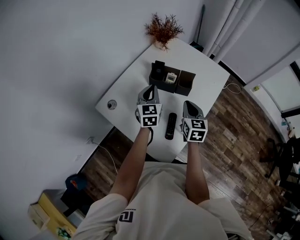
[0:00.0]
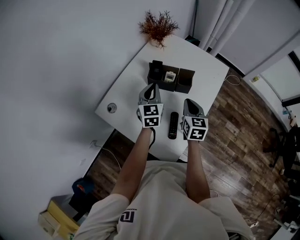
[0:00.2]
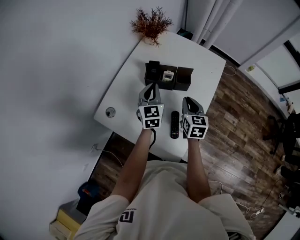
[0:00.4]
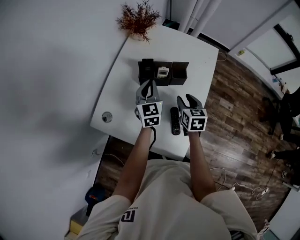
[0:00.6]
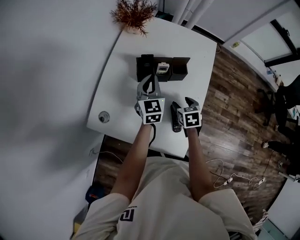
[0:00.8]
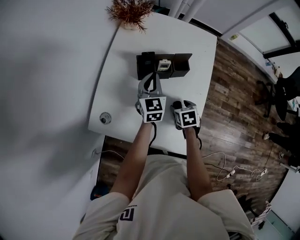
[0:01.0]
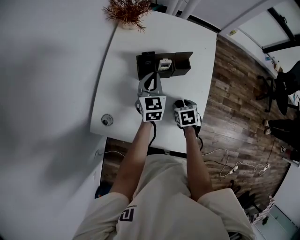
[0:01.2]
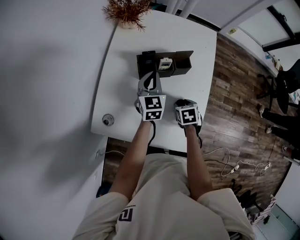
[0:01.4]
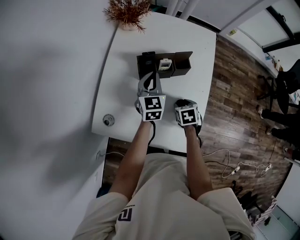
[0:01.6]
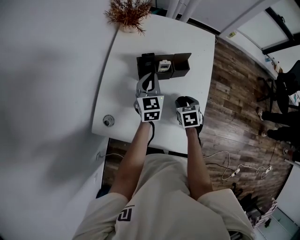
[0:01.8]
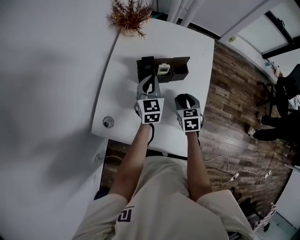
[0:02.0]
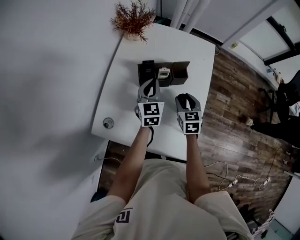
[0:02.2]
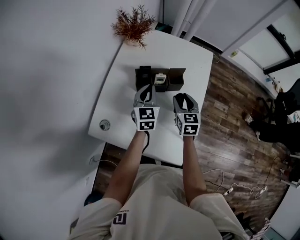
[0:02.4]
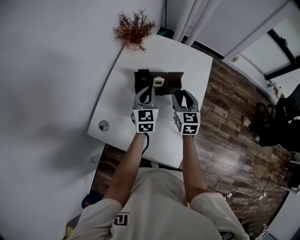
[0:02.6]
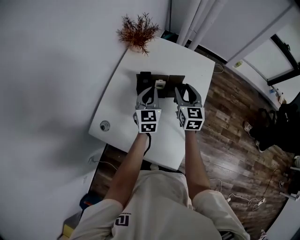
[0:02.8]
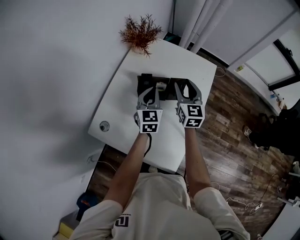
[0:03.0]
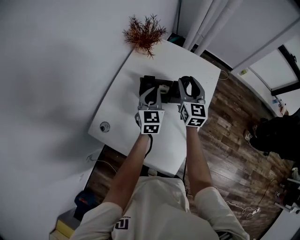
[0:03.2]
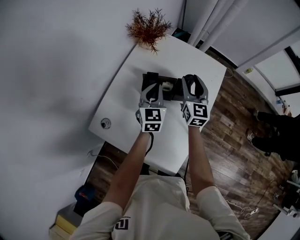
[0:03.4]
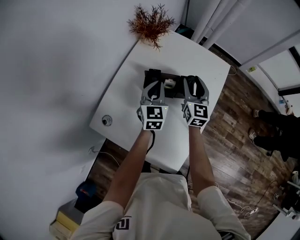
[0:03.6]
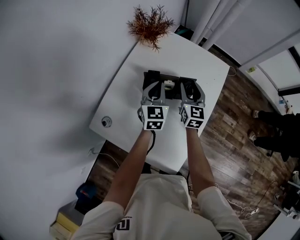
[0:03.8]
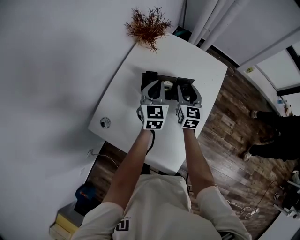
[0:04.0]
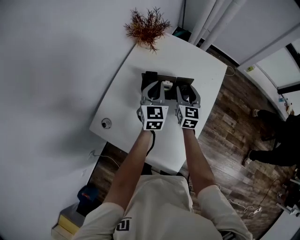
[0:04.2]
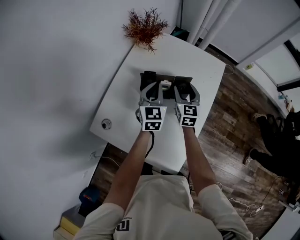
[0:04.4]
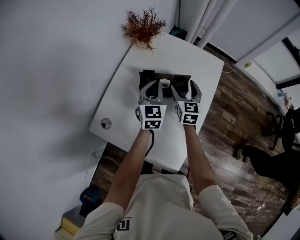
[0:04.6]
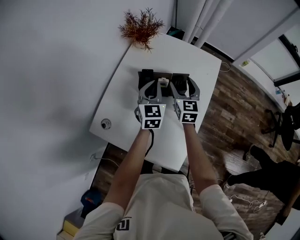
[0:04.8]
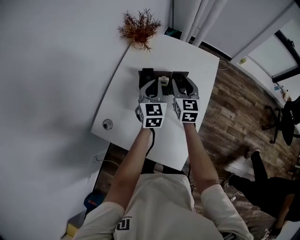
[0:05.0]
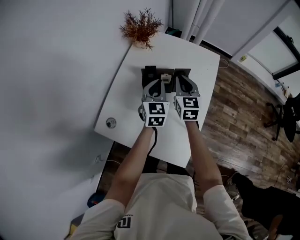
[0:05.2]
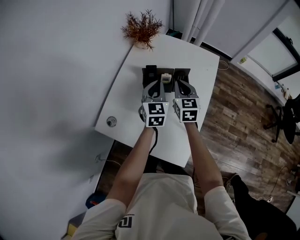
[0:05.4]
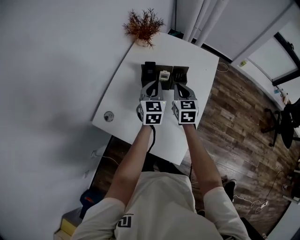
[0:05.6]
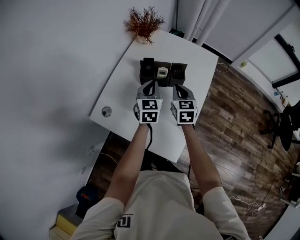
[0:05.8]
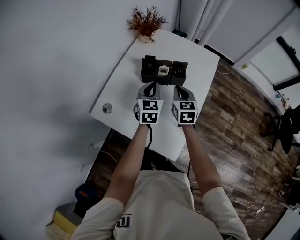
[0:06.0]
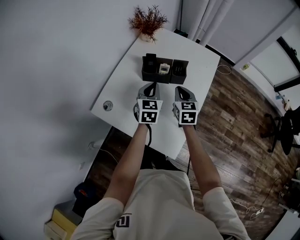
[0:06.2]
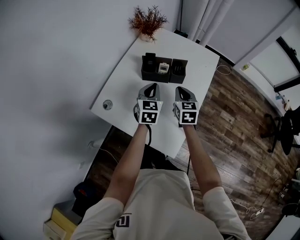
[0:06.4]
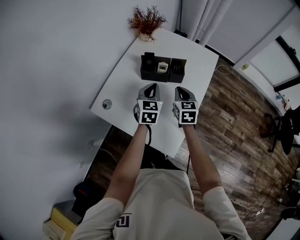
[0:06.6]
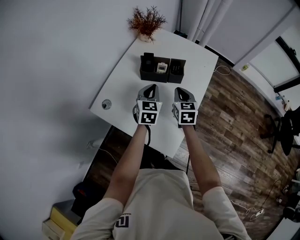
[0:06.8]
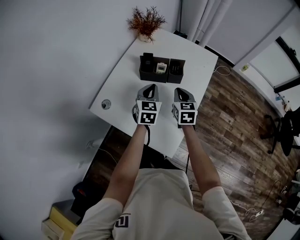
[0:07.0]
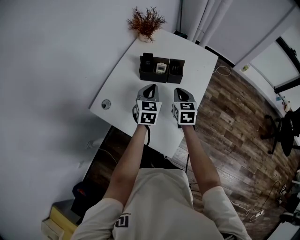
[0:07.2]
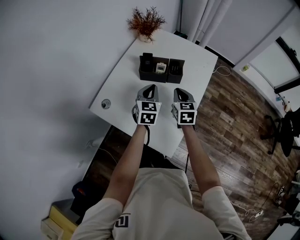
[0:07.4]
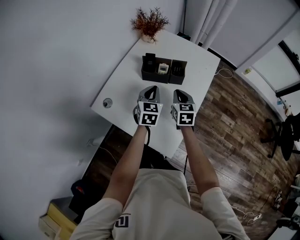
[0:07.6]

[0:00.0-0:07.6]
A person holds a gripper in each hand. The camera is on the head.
0.0 to 1.6 s: The left gripper goes some 10 cm forward and downward, and turns by approximately 30 degrees. The right gripper is displaced downward by approximately 15 cm, angles its fingers downward, by roughly 40 degrees, and opens up.
1.6 to 3.0 s: The left gripper goes approximately 5 cm upward. Meanwhile the right gripper goes some 30 cm upward and forward, and tilts its fingers approximately 60 degrees upward.
3.0 to 4.6 s: The right gripper travels downward by roughly 10 cm, and opens.
4.6 to 6.0 s: Both grippers move backward, approximately 10 cm. The right gripper closes up.
6.0 to 7.6 s: The grippers stay close to where they were, moving slightly.

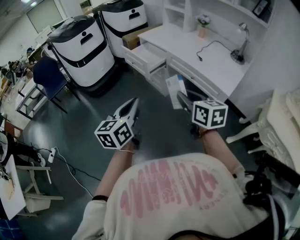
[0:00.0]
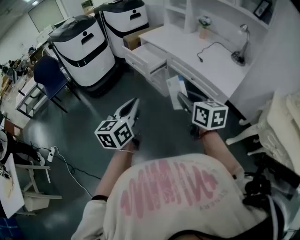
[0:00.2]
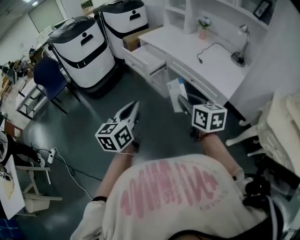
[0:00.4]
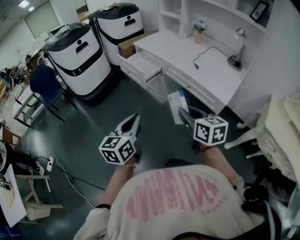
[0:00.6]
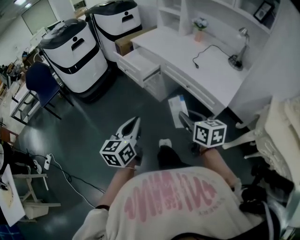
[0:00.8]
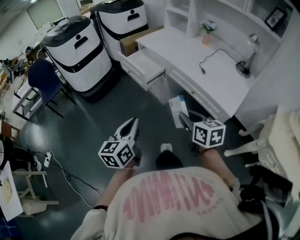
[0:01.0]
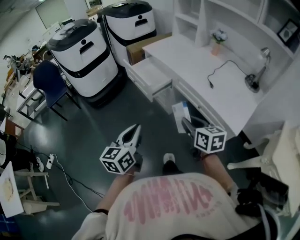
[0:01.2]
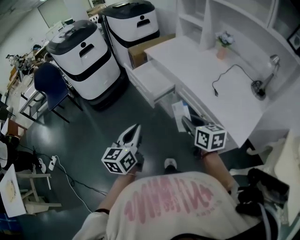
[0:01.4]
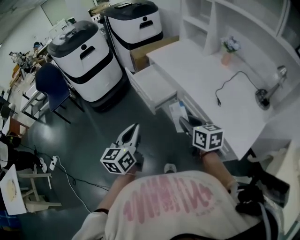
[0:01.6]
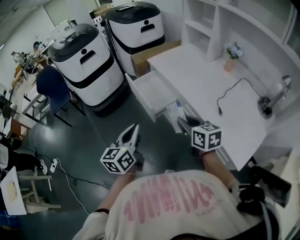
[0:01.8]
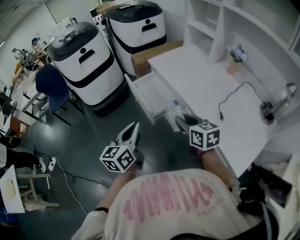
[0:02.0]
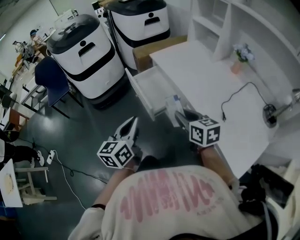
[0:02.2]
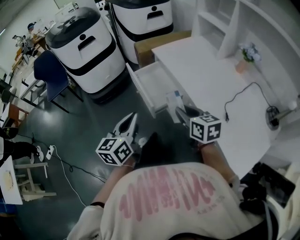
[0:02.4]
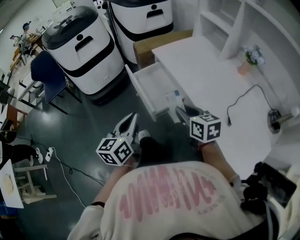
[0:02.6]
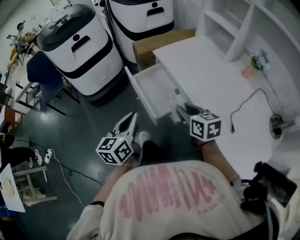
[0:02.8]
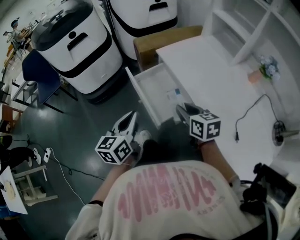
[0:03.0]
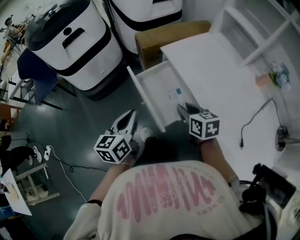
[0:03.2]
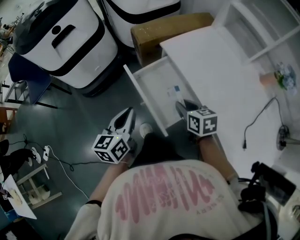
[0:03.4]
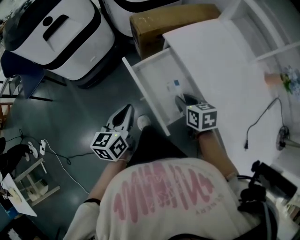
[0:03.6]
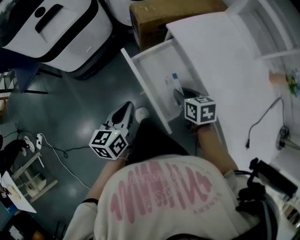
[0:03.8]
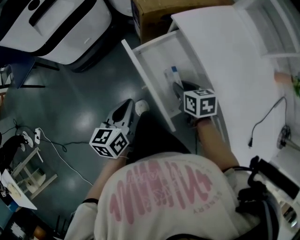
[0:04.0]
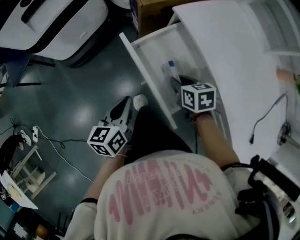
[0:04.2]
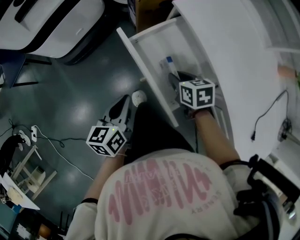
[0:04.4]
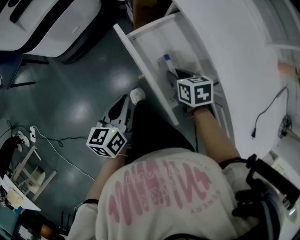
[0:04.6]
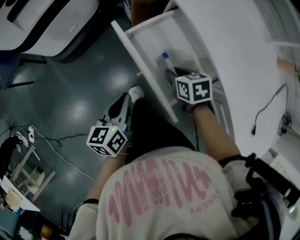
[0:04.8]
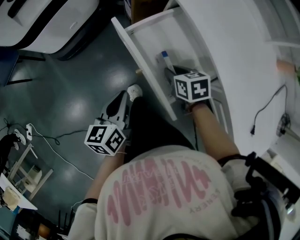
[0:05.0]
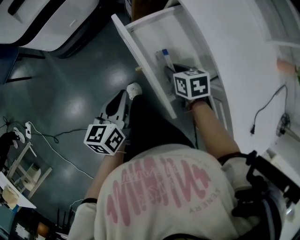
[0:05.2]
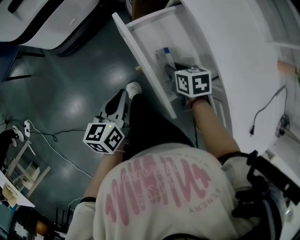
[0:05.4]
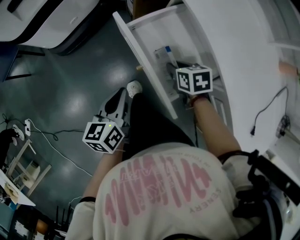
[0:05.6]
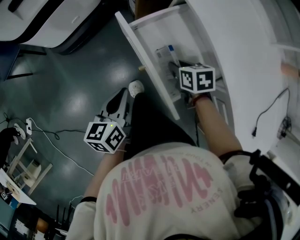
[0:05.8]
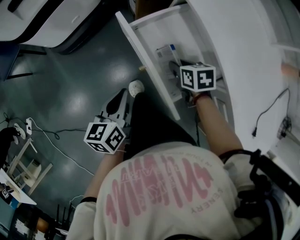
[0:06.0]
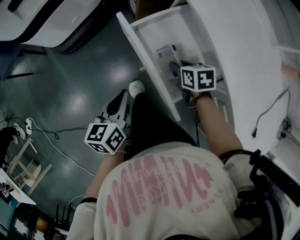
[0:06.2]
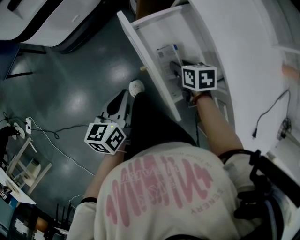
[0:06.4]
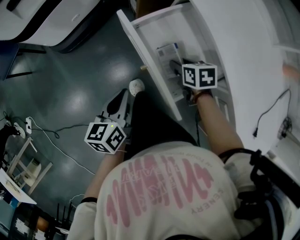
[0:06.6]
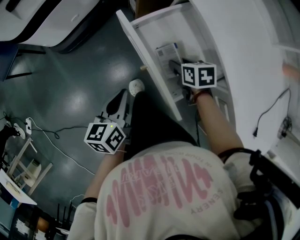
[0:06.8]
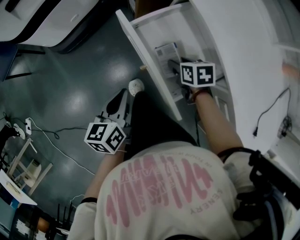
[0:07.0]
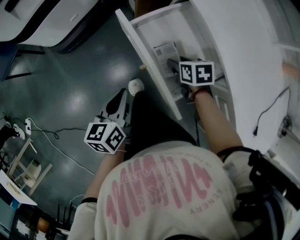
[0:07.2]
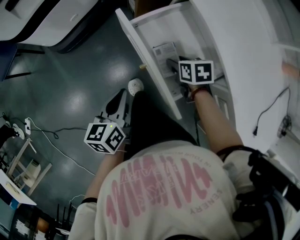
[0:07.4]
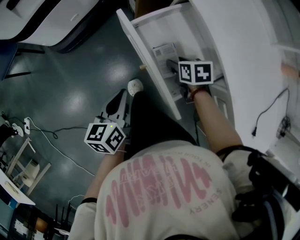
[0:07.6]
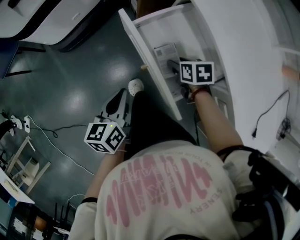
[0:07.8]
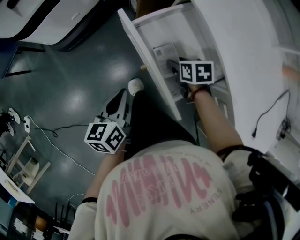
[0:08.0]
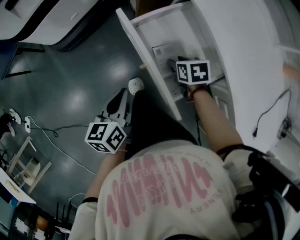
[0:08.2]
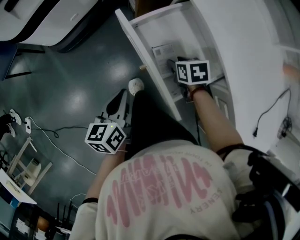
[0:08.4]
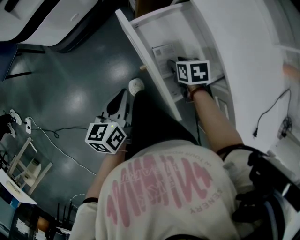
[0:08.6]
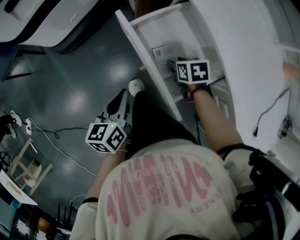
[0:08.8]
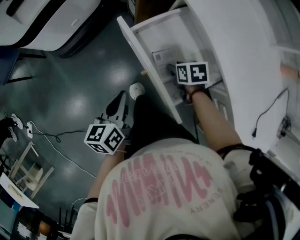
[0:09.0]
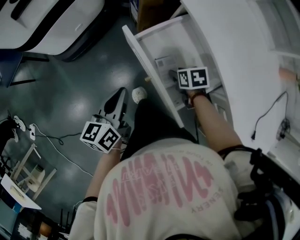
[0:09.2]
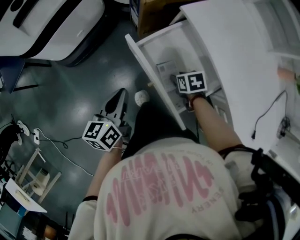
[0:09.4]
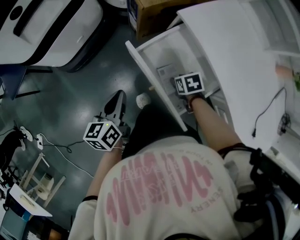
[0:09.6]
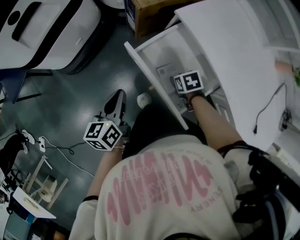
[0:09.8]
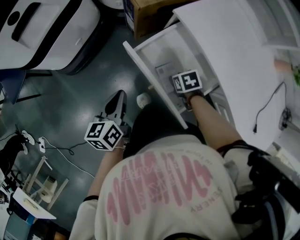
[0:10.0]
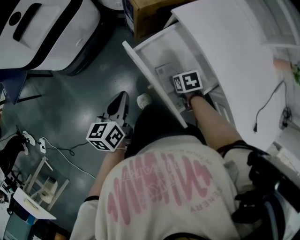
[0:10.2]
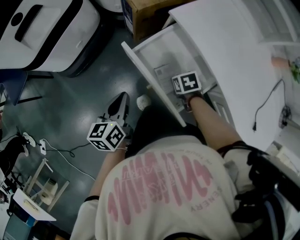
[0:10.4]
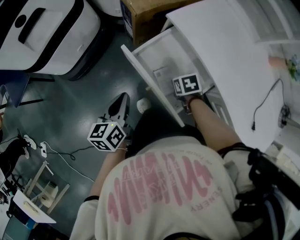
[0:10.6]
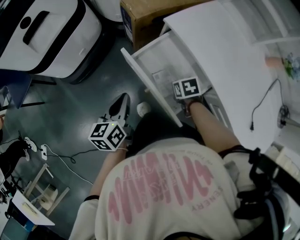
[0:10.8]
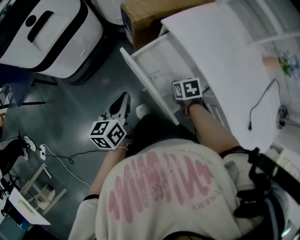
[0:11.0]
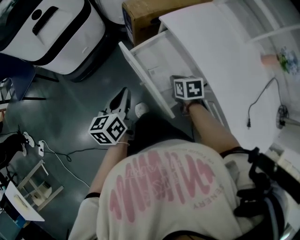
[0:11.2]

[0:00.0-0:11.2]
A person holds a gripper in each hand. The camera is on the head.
0.0 to 1.6 s: The grippers both shift forward by some 25 cm.
1.6 to 3.2 s: Both grippers travel together forward, about 30 cm.
3.2 to 4.8 s: The two grippers go approximately 15 cm downward.
4.8 to 8.0 s: The grippers make only small movements.
8.0 to 9.6 s: The left gripper moves some 10 cm.
9.6 to 11.2 s: The right gripper heads upward, covering approximately 10 cm, turns by some 20 degrees, and closes up; the left gripper shifts by about 10 cm.

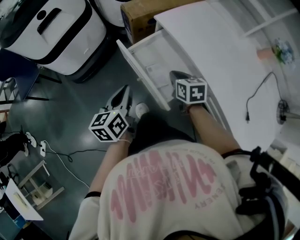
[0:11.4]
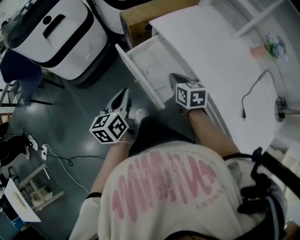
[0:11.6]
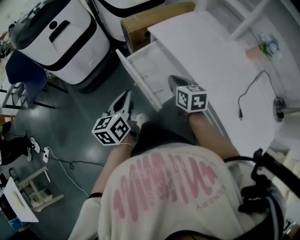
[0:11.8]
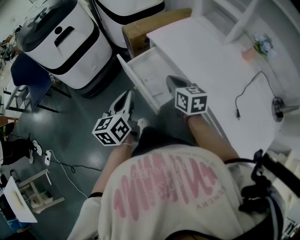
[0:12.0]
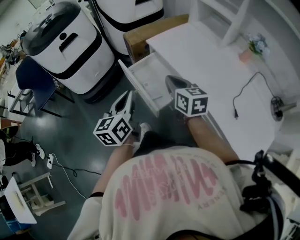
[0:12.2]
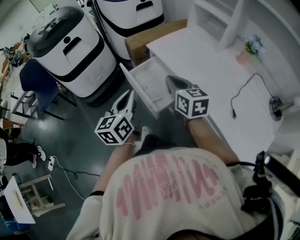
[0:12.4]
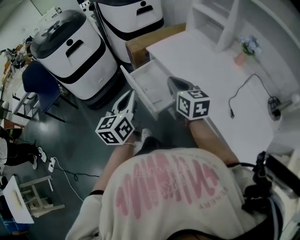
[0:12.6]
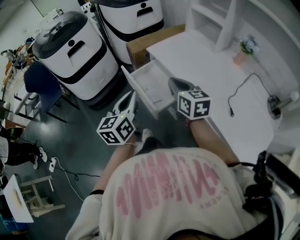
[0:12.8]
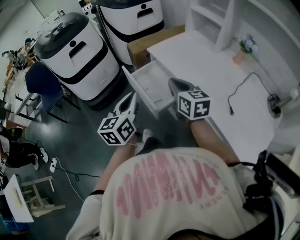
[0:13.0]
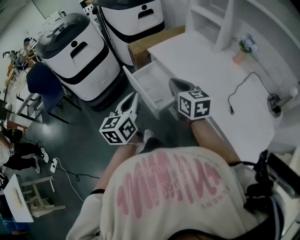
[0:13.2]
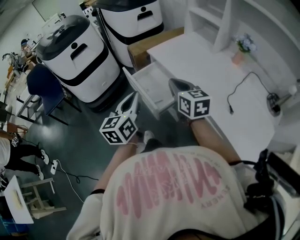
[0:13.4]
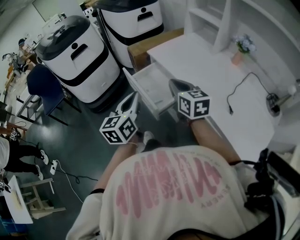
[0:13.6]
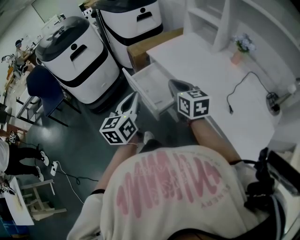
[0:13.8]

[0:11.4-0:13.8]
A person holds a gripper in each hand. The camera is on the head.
11.4 to 12.6 s: The right gripper shifts about 25 cm upward and backward, and rotates roughly 30 degrees. Meanwhile the left gripper shifts about 20 cm upward, backward and to the right.
12.6 to 13.8 s: There are only small adjustments of the grippers.

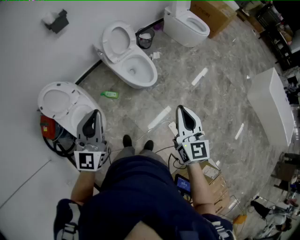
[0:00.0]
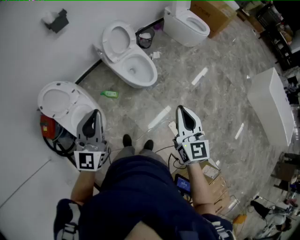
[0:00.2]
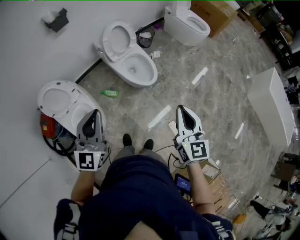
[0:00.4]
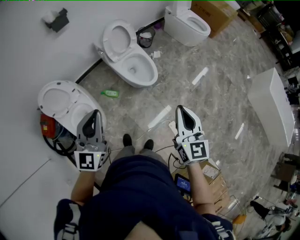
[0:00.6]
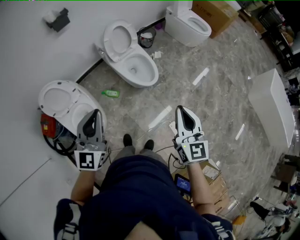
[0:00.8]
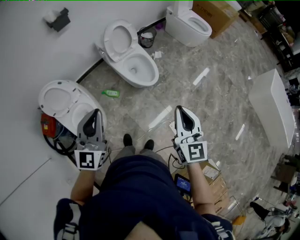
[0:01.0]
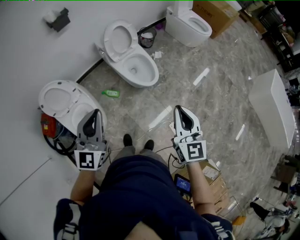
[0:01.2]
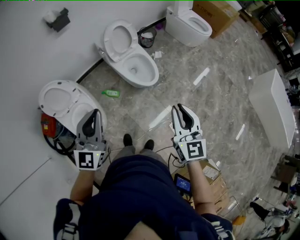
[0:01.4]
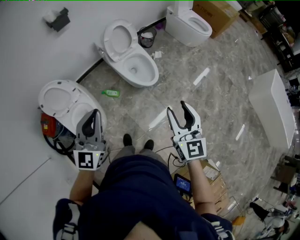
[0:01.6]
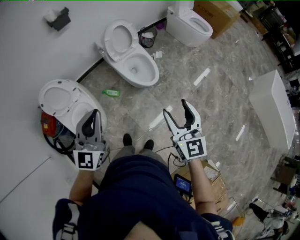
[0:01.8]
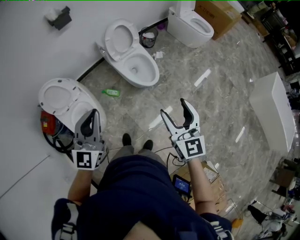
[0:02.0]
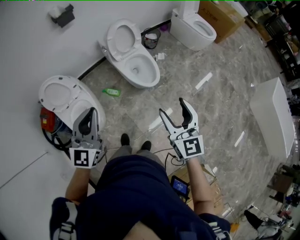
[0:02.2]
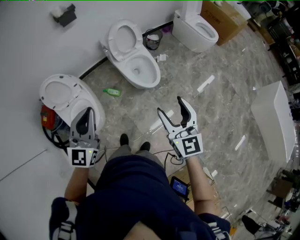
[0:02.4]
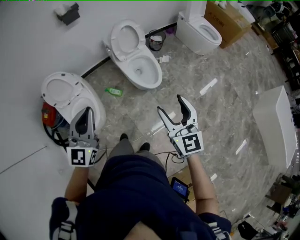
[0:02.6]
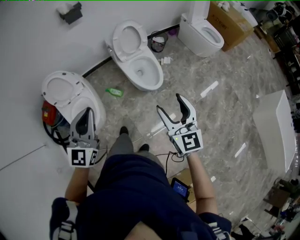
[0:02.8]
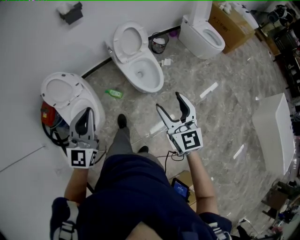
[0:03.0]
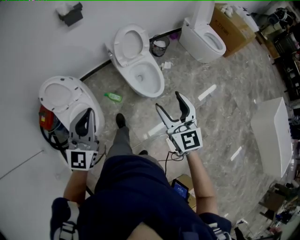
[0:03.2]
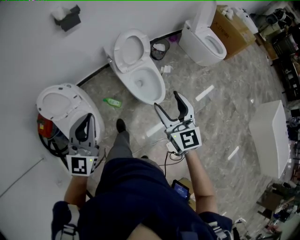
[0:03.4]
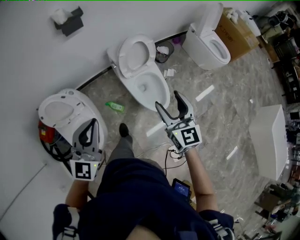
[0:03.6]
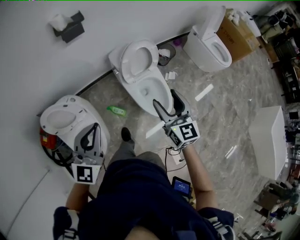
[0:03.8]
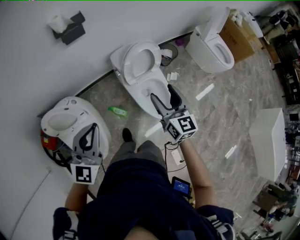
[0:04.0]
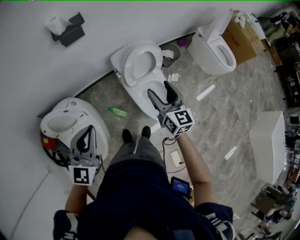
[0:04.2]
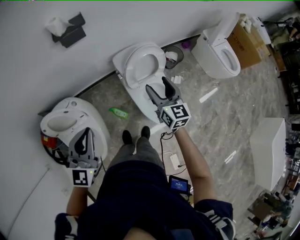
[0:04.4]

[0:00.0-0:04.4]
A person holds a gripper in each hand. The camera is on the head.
0.0 to 1.4 s: The grippers stay close to where they were, moving slightly.
1.4 to 3.0 s: The right gripper heads forward, covering approximately 5 cm, and opens.
3.0 to 4.4 s: The two grippers go about 40 cm forward.
